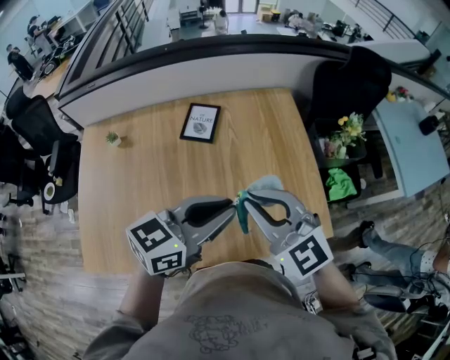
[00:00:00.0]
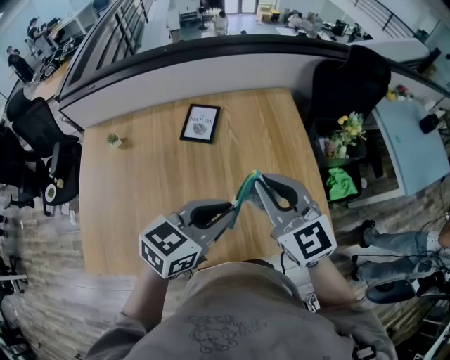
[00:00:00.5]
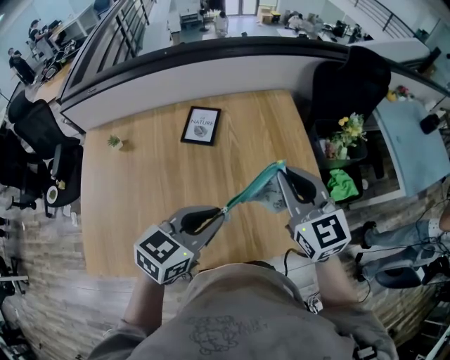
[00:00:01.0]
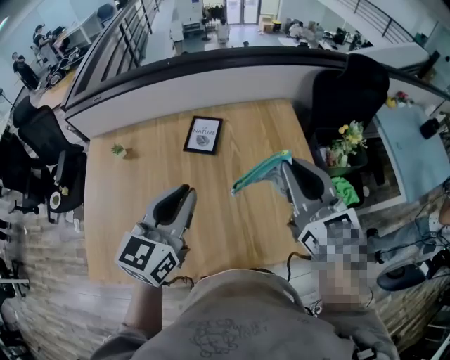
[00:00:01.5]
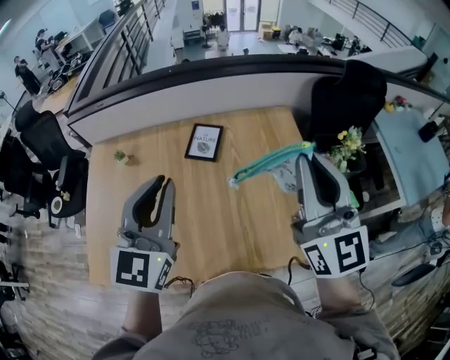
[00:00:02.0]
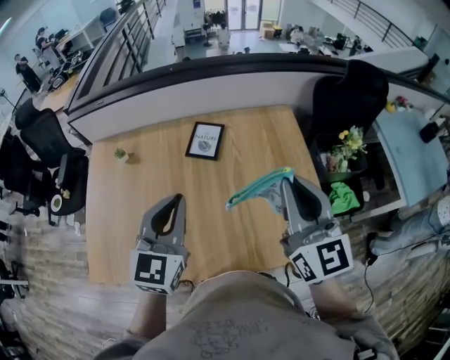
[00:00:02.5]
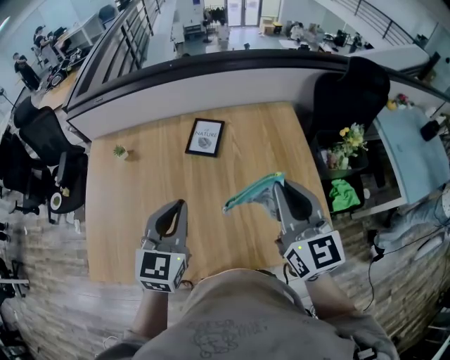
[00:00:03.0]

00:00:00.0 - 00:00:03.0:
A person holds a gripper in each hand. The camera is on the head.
00:00:00.0 - 00:00:01.5: The right gripper shifts roughly 15 cm forward, to the right and upward, and turns by about 30 degrees. Meanwhile the left gripper heads to the left, covering about 10 cm, and turns by roughly 30 degrees.
00:00:01.5 - 00:00:03.0: The left gripper ends up roughly 5 cm from where it was, while the right gripper moves some 5 cm upward and comes back.

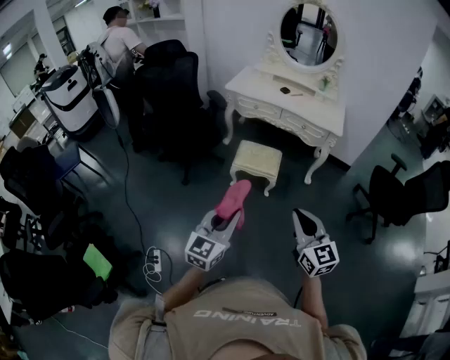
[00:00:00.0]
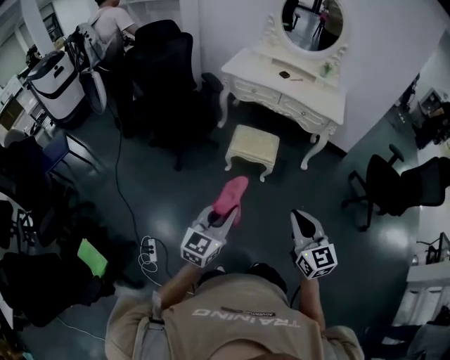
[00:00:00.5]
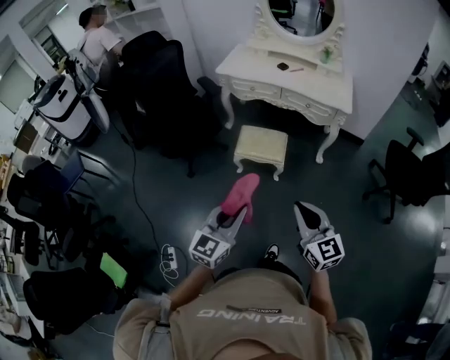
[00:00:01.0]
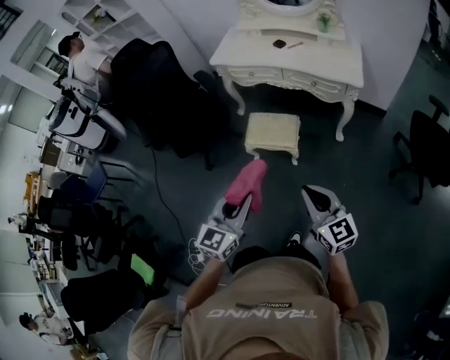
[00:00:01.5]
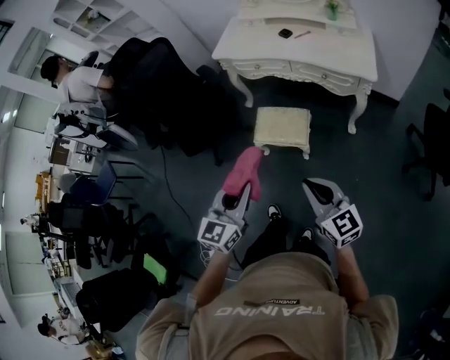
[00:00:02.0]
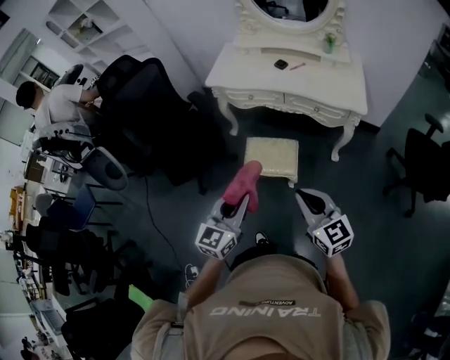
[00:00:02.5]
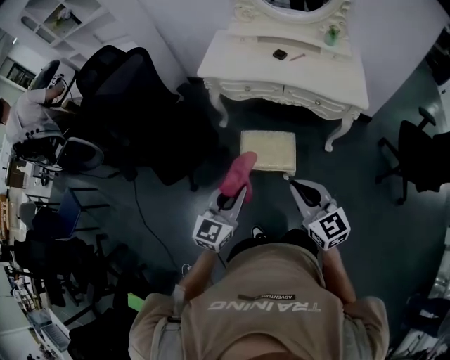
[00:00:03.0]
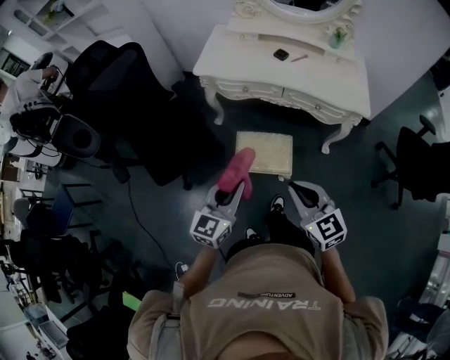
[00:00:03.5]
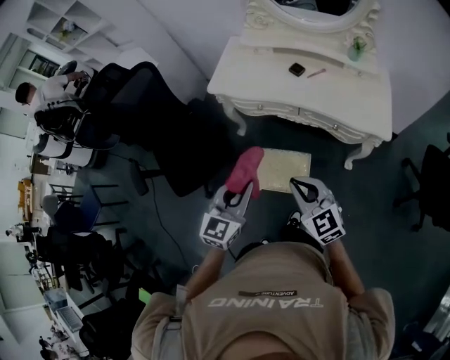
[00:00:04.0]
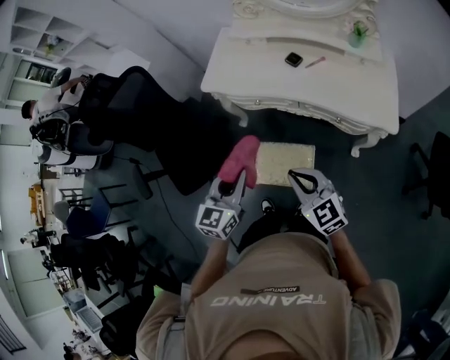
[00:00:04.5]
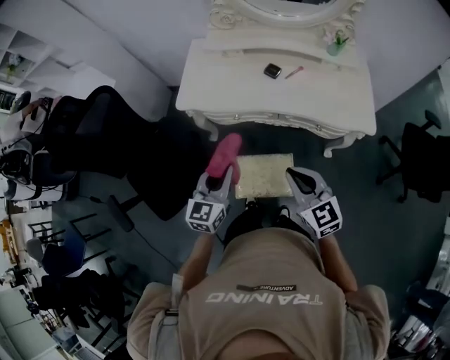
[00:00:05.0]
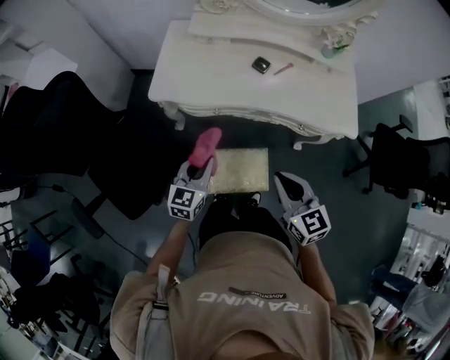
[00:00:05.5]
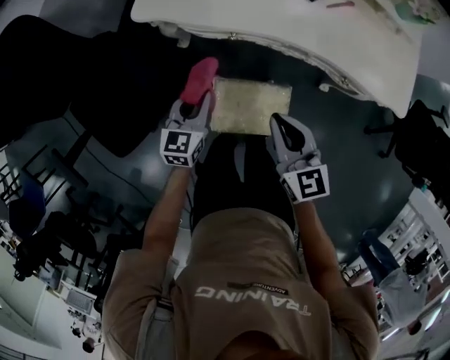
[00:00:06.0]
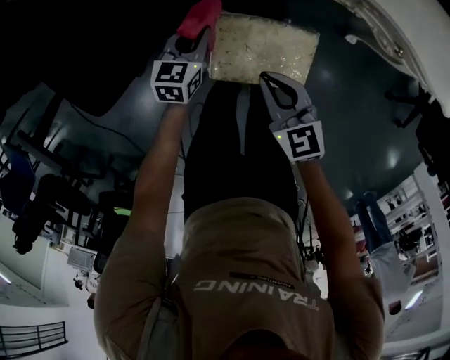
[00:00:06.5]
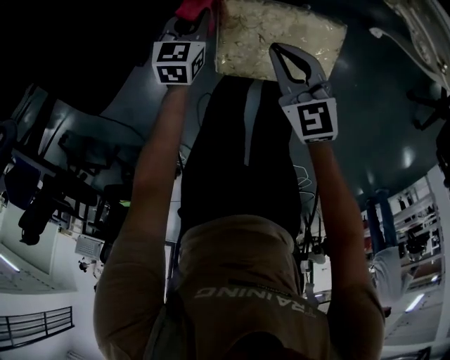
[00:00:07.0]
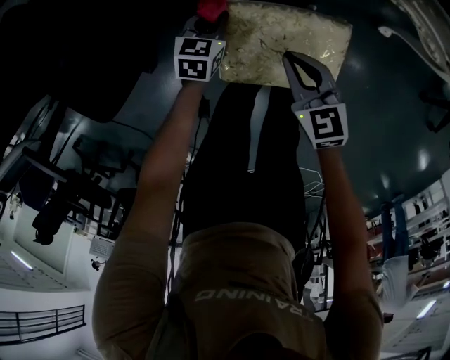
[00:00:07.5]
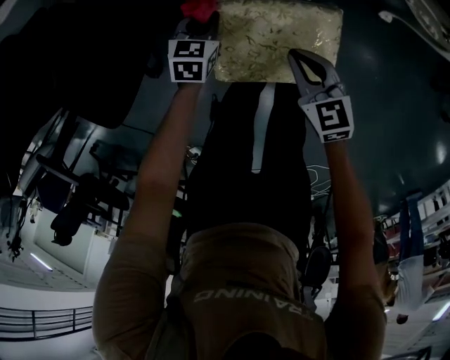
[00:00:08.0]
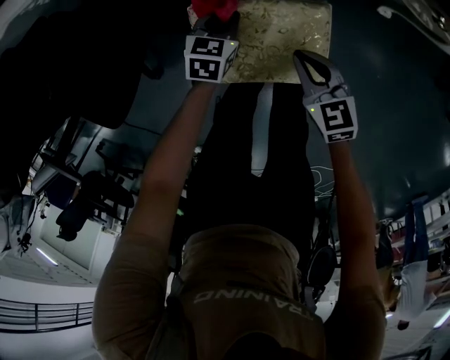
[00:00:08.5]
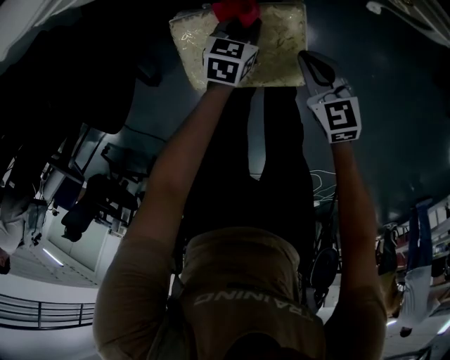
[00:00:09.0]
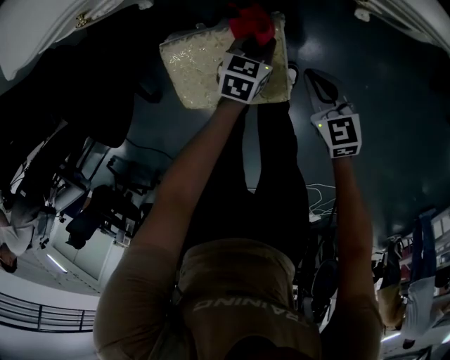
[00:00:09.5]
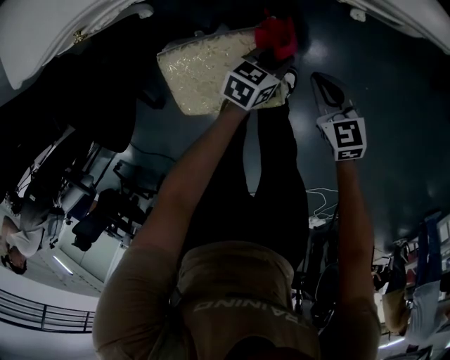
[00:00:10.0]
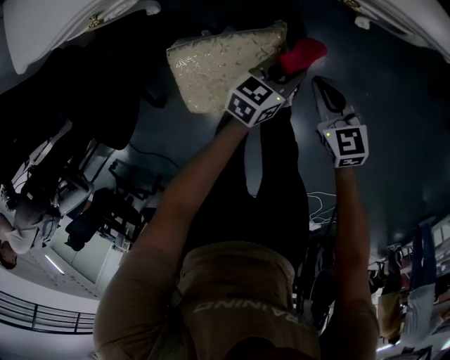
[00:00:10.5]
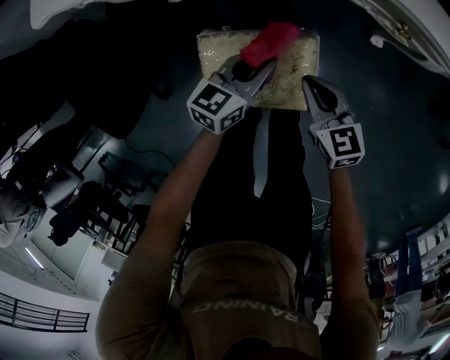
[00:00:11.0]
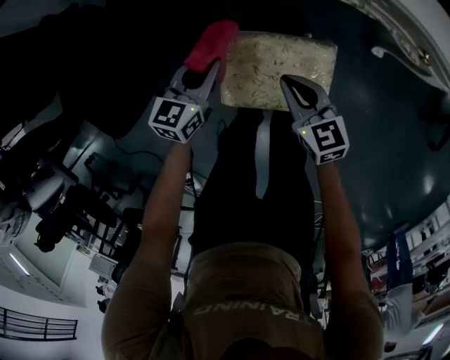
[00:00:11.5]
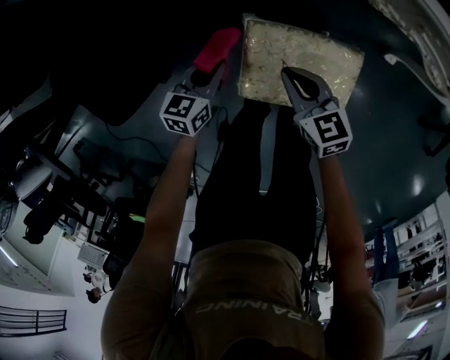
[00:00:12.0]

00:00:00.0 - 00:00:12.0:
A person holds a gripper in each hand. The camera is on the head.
00:00:00.0 - 00:00:02.0: The left gripper is displaced forward and to the right by roughly 35 cm. Meanwhile the right gripper is displaced forward by some 30 cm.
00:00:02.0 - 00:00:04.0: Both grippers move forward, approximately 35 cm.
00:00:04.0 - 00:00:06.0: The right gripper goes about 30 cm forward and downward, and rotates about 30 degrees. The left gripper travels downward and forward by some 40 cm, and swivels approximately 20 degrees.
00:00:06.0 - 00:00:08.0: Both grippers travel together downward, roughly 35 cm. The left gripper turns by about 30 degrees.
00:00:08.0 - 00:00:10.0: The right gripper ends up approximately 25 cm from where it was, while the left gripper shifts by some 40 cm, and rotates roughly 30 degrees.
00:00:10.0 - 00:00:12.0: The left gripper shifts by roughly 50 cm, and rotates some 40 degrees, while the right gripper ends up roughly 40 cm from where it was.

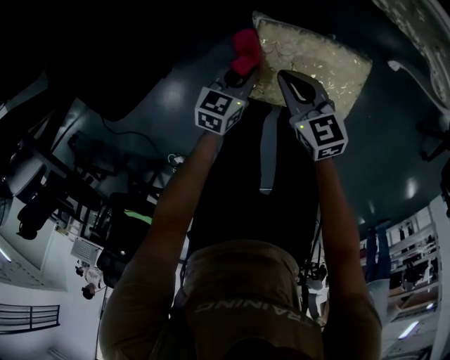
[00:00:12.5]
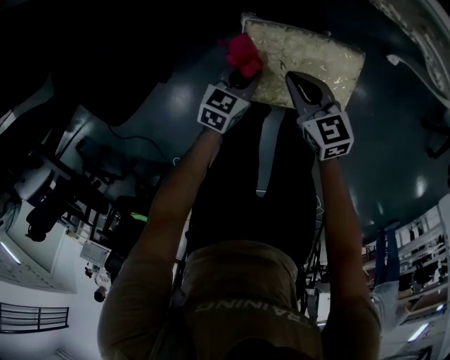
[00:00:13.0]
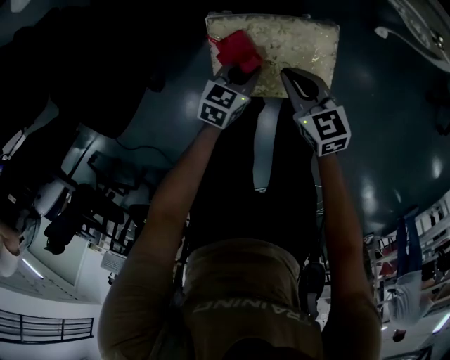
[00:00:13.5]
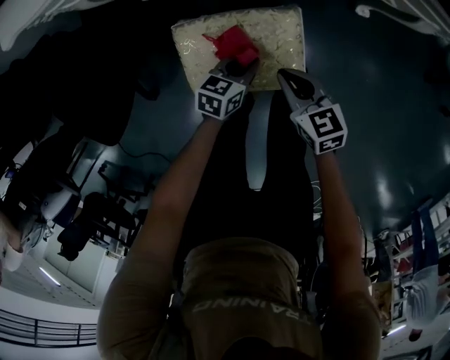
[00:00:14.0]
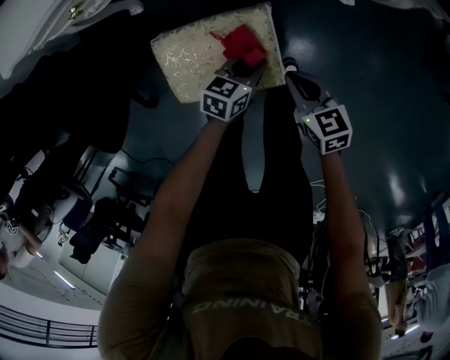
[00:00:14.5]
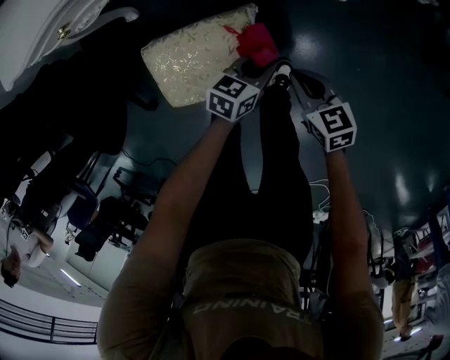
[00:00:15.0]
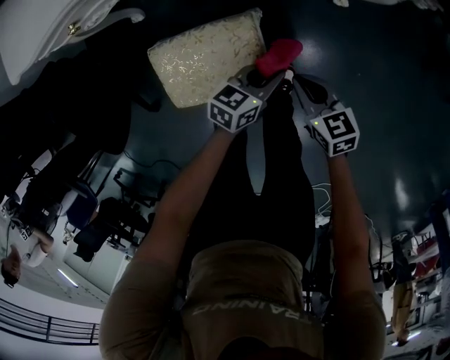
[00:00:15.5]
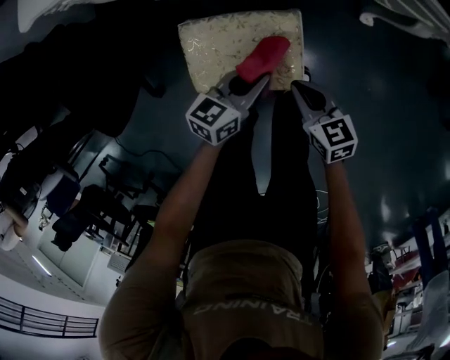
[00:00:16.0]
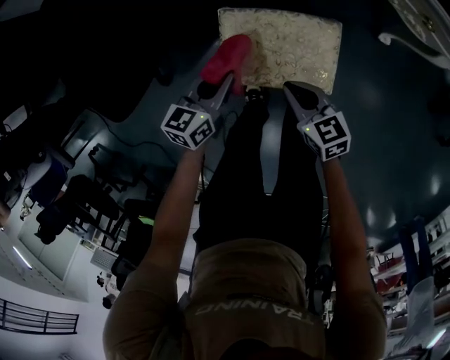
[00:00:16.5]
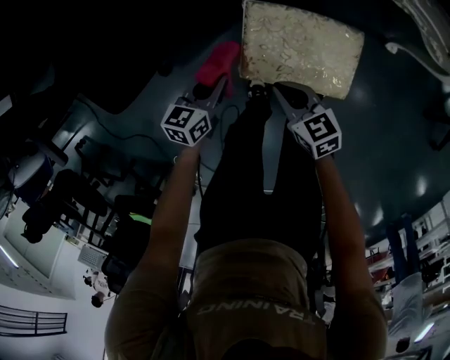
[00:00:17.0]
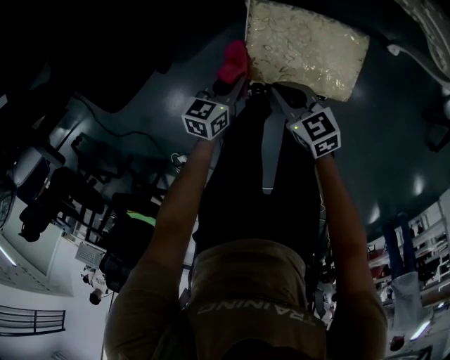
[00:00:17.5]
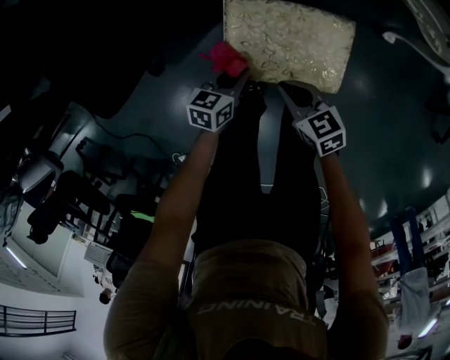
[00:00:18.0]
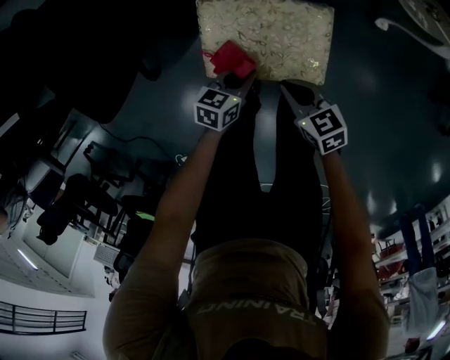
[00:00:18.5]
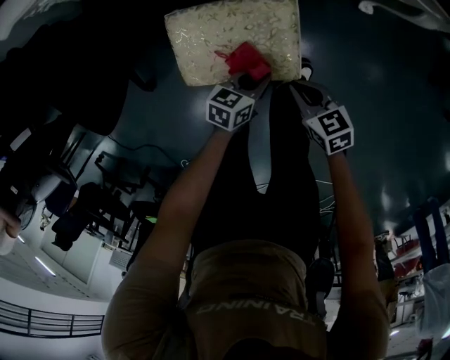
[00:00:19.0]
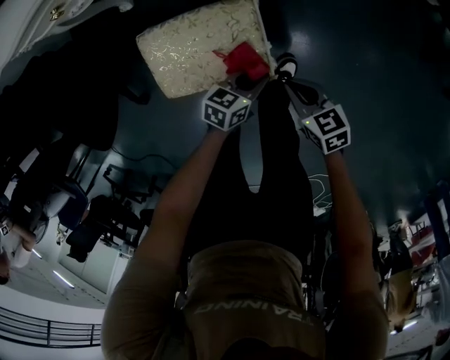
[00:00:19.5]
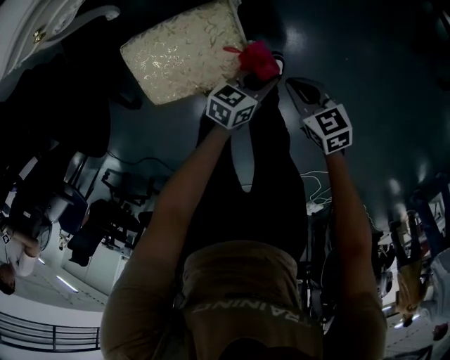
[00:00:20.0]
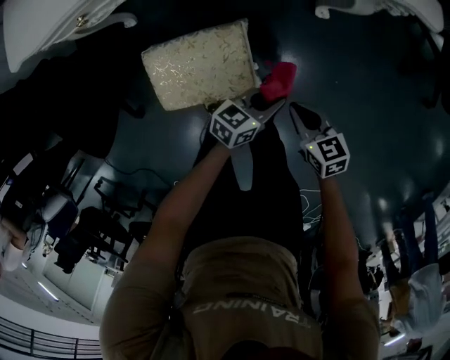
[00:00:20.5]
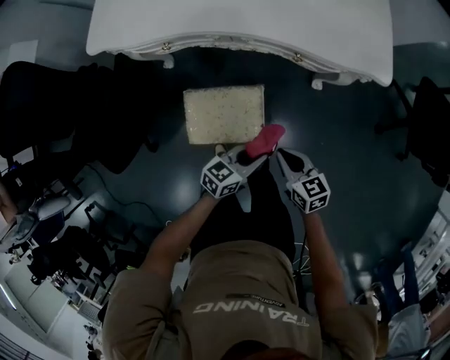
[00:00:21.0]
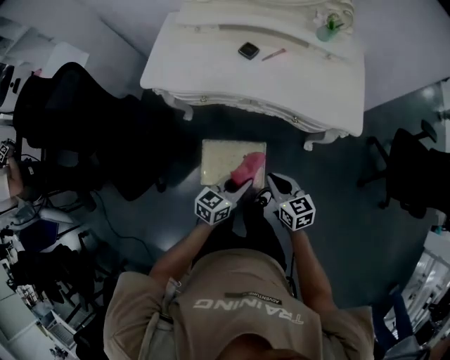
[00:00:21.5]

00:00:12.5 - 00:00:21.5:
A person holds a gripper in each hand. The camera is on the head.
00:00:12.5 - 00:00:14.5: Both grippers travel together to the right, approximately 35 cm. The left gripper swivels roughly 20 degrees.
00:00:14.5 - 00:00:17.0: The right gripper changes place by roughly 30 cm, and swivels about 20 degrees. The left gripper shifts by some 40 cm, and swivels some 30 degrees.
00:00:17.0 - 00:00:19.5: The left gripper moves roughly 40 cm, and changes its angle by about 30 degrees, while the right gripper changes place by some 30 cm.
00:00:19.5 - 00:00:21.5: The two grippers go some 40 cm upward. The left gripper turns by roughly 30 degrees. Meanwhile the right gripper turns by about 20 degrees.

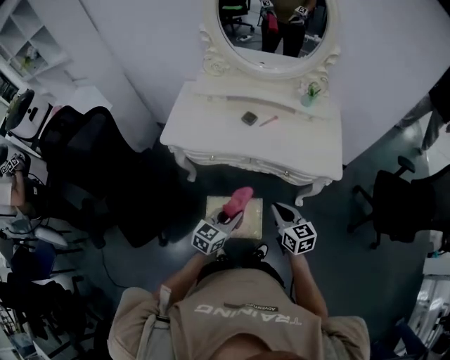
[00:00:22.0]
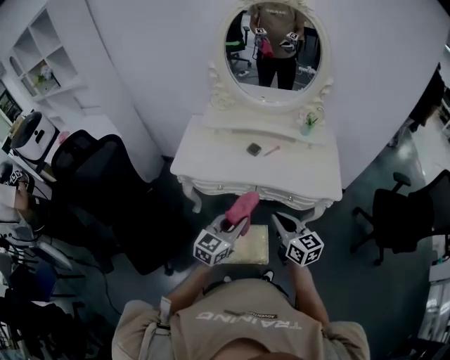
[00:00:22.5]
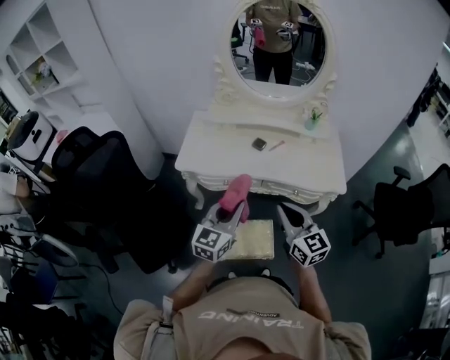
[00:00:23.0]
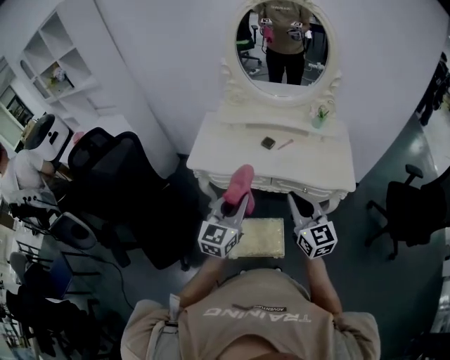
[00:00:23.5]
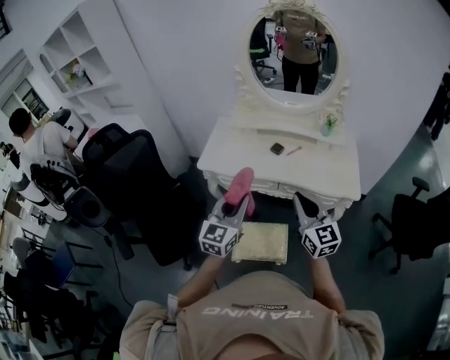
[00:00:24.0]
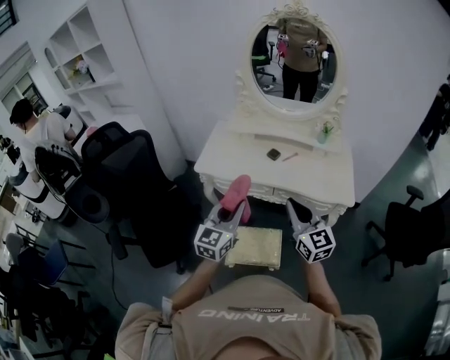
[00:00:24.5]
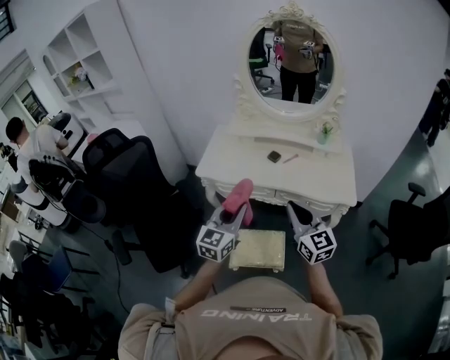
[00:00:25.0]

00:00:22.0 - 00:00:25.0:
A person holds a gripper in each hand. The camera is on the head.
00:00:22.0 - 00:00:23.5: The right gripper travels upward by approximately 20 cm, and turns by roughly 30 degrees. Meanwhile the left gripper moves upward and to the left, about 25 cm, and rotates roughly 30 degrees.
00:00:23.5 - 00:00:25.0: The grippers make only small movements.
